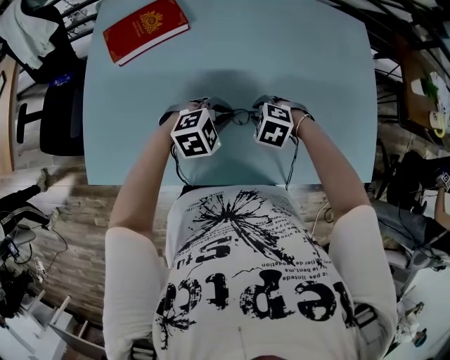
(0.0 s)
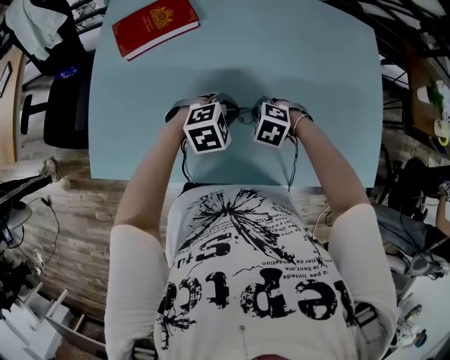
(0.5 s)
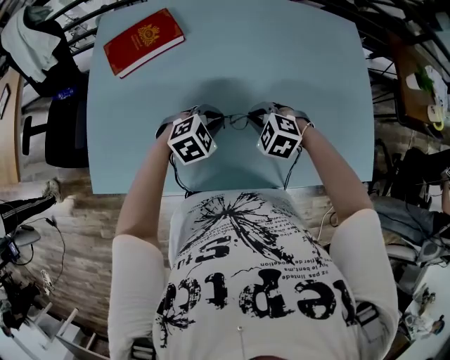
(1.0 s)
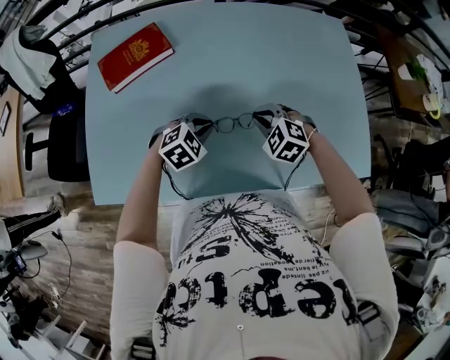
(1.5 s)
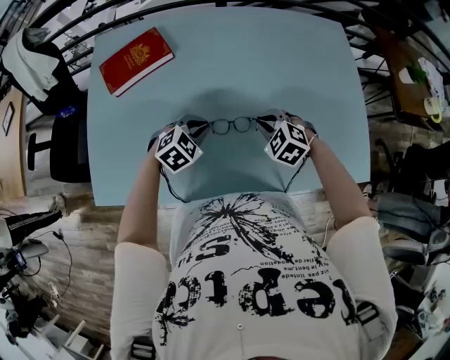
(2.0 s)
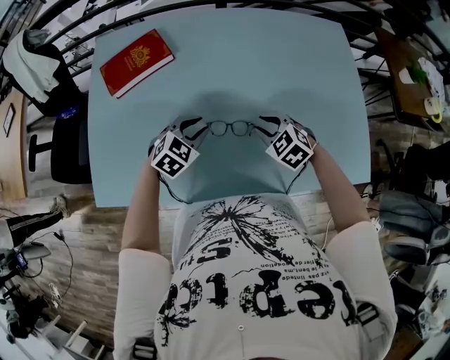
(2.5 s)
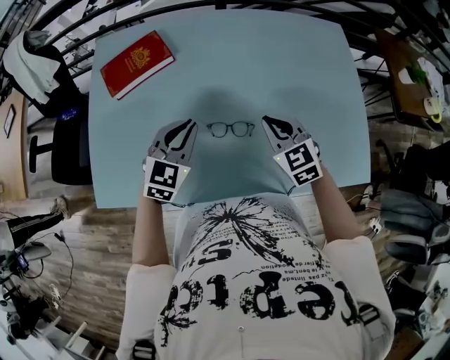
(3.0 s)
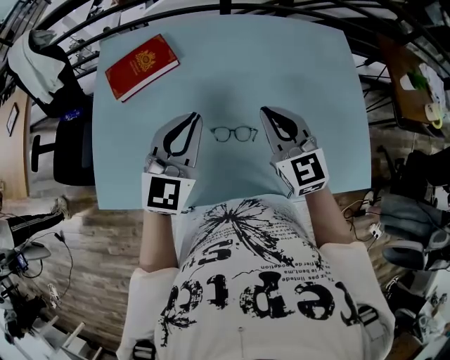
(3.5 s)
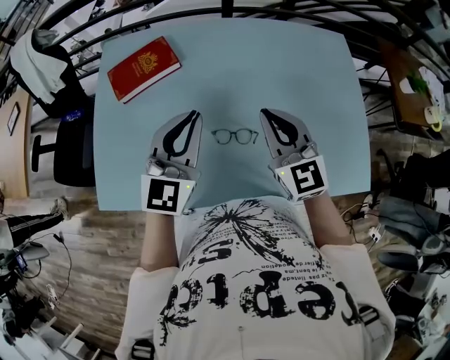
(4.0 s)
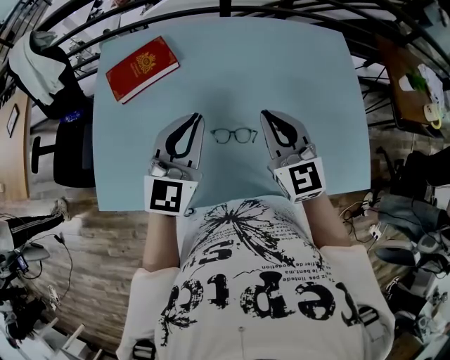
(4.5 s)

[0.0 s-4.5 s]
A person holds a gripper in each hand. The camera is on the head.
0.0 to 2.0 s: The right gripper shifts some 5 cm upward, rotates some 20 degrees, and closes.
2.0 to 4.5 s: Both grippers travel together upward, about 20 cm. The right gripper tilts its fingers approximately 50 degrees upward, and opens, then closes again. The left gripper tips its fingers upward by approximately 50 degrees, and opens, then closes once more.

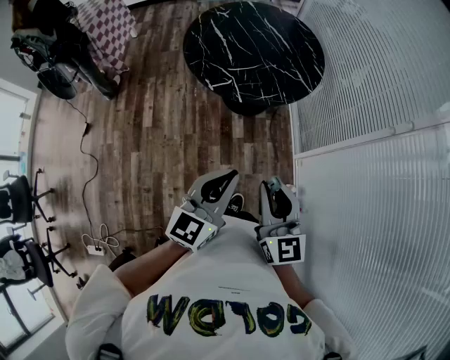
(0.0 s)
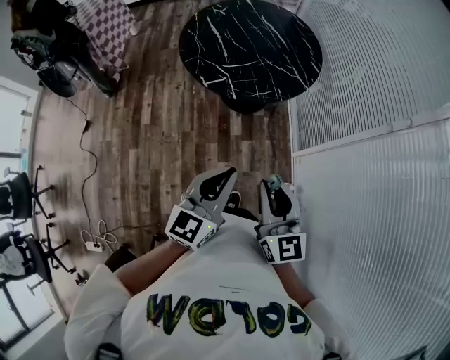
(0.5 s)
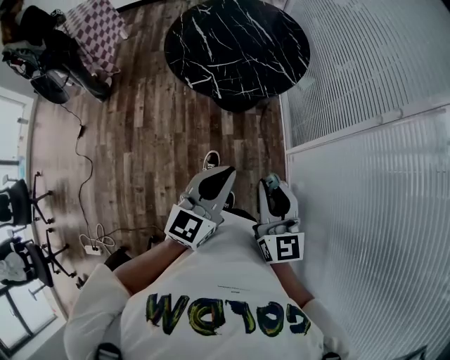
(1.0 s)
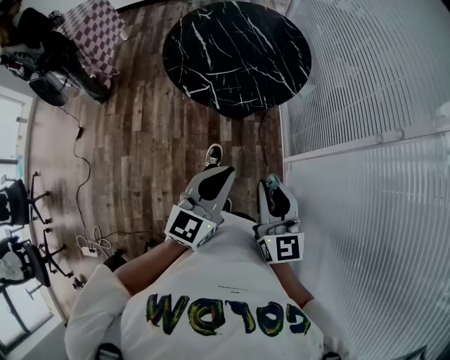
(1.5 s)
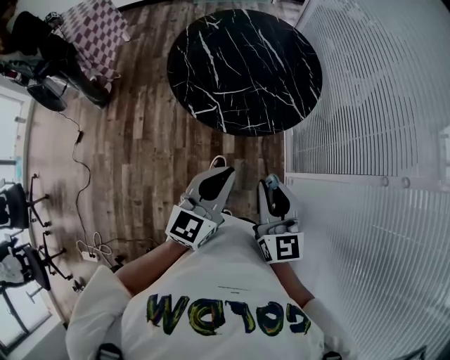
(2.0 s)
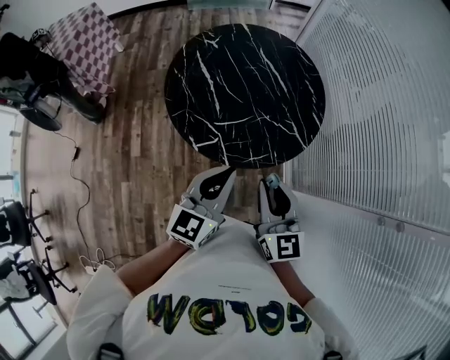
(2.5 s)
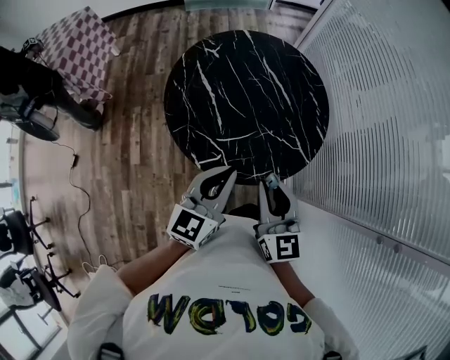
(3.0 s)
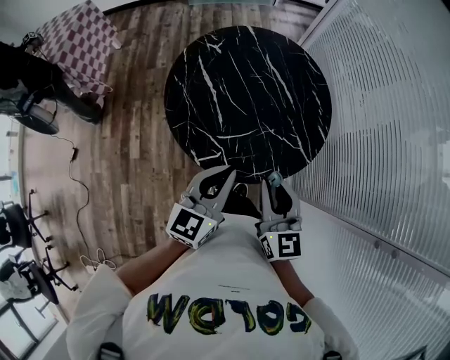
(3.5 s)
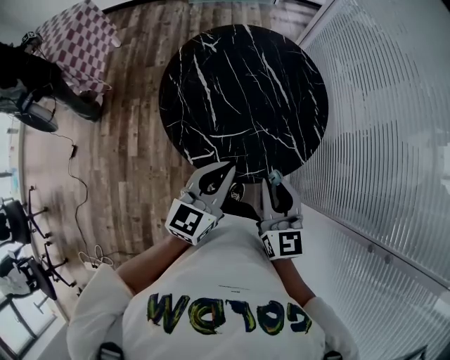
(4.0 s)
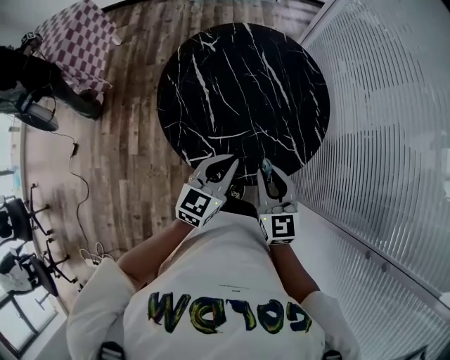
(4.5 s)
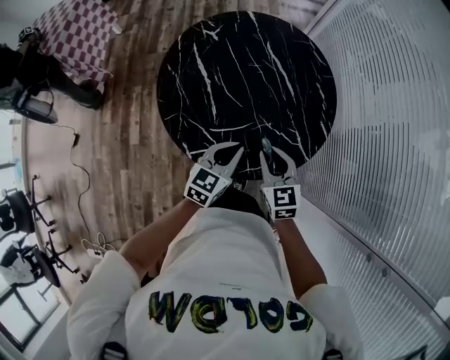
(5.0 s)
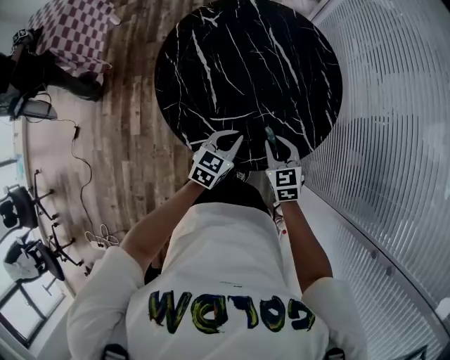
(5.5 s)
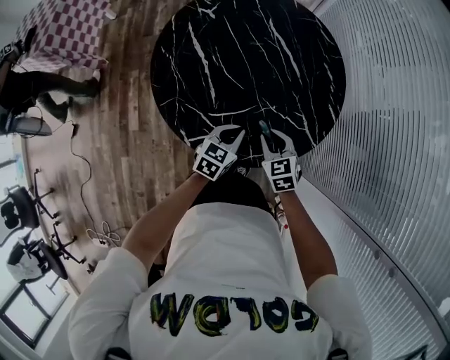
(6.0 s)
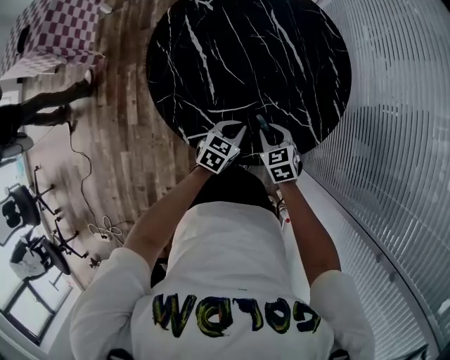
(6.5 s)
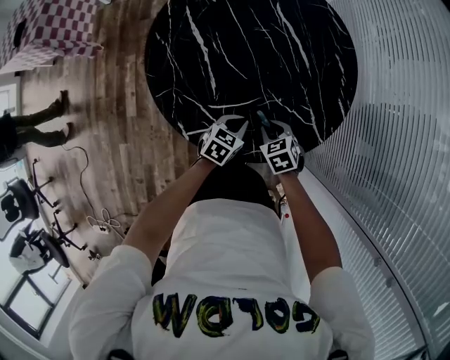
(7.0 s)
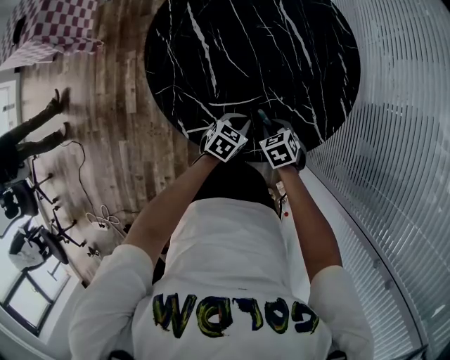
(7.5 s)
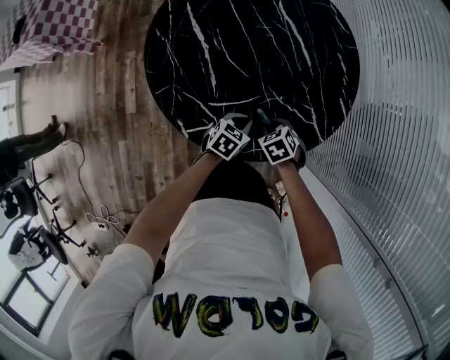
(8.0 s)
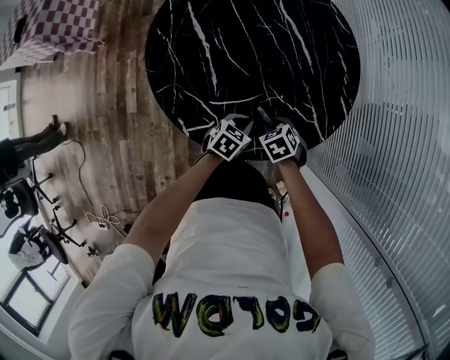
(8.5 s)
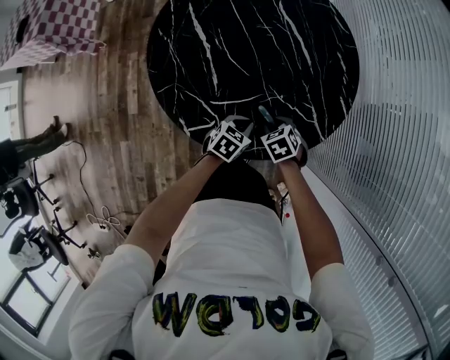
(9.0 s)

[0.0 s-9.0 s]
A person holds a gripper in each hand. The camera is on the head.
0.0 to 2.0 s: The grippers both shift forward by some 20 cm.
2.0 to 4.5 s: Both grippers travel together forward, about 30 cm.
4.5 to 7.0 s: The two grippers go approximately 30 cm downward. The right gripper points its fingers some 40 degrees further downward. Meanwhile the left gripper rotates approximately 30 degrees.
7.0 to 9.0 s: There are only small adjustments of the grippers.

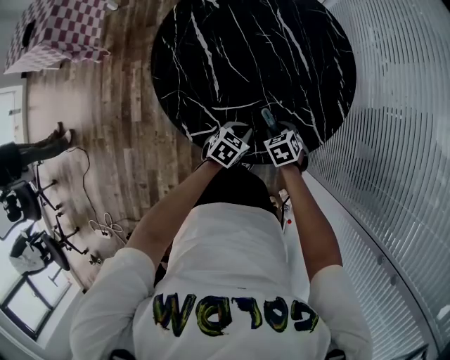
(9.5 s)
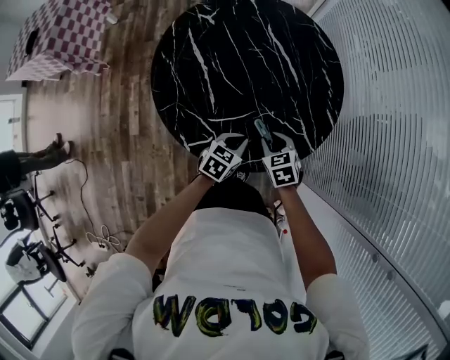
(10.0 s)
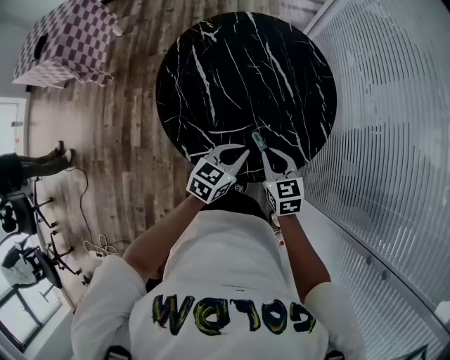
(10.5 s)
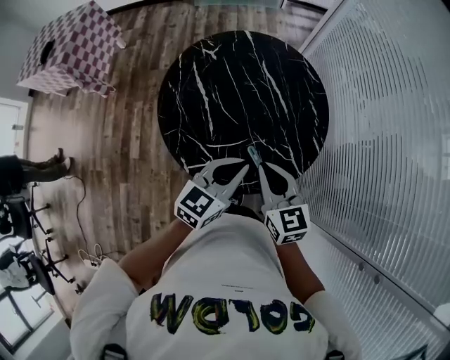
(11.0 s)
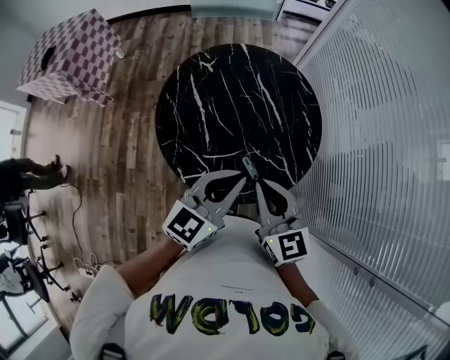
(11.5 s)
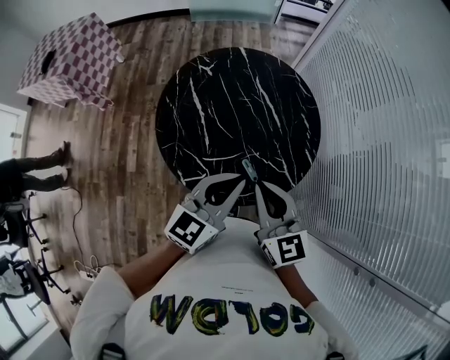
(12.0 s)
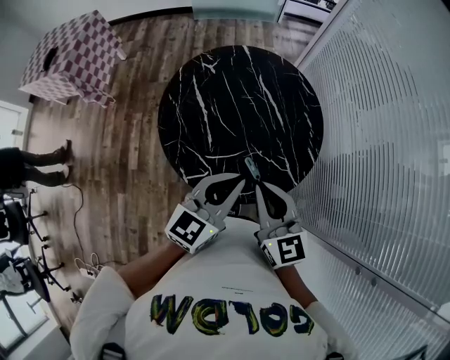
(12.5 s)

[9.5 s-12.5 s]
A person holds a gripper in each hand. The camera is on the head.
9.5 to 11.0 s: The grippers both shift upward by about 30 cm. The right gripper tips its fingers upward by about 50 degrees, and closes up; the left gripper angles its fingers upward, by approximately 30 degrees.
11.0 to 12.5 s: The grippers both shift upward by roughly 10 cm.

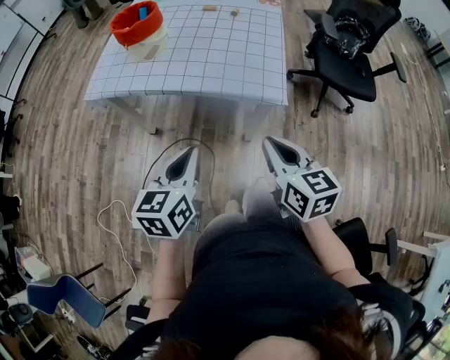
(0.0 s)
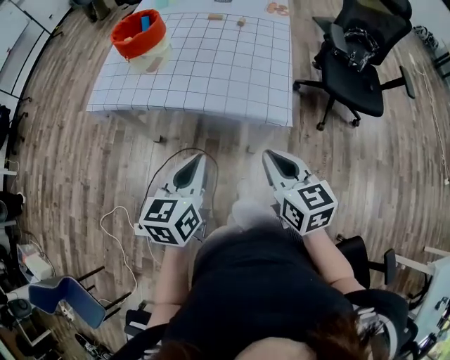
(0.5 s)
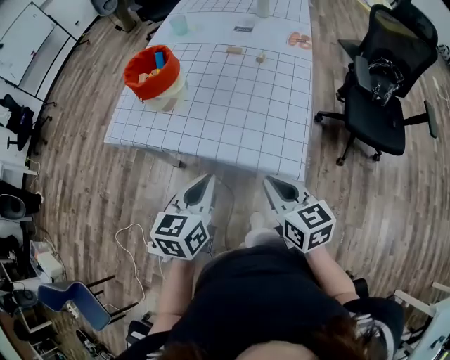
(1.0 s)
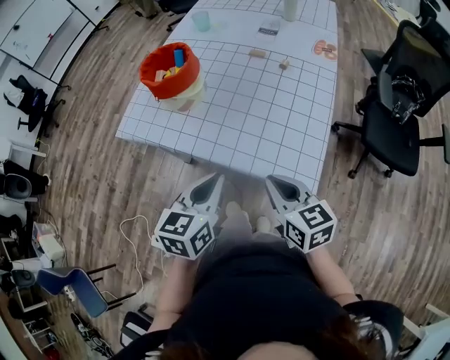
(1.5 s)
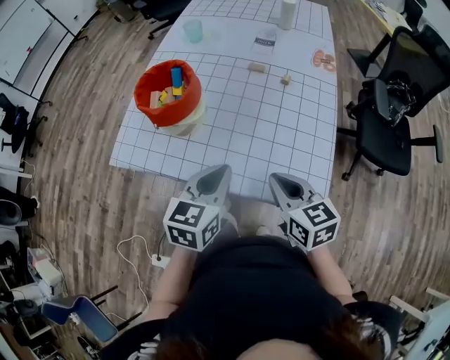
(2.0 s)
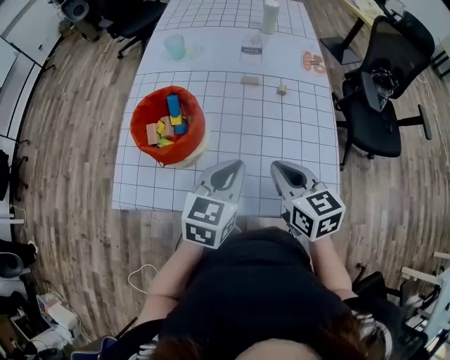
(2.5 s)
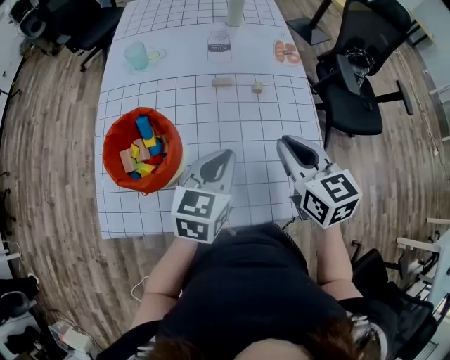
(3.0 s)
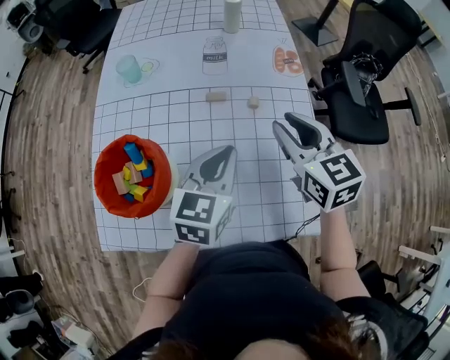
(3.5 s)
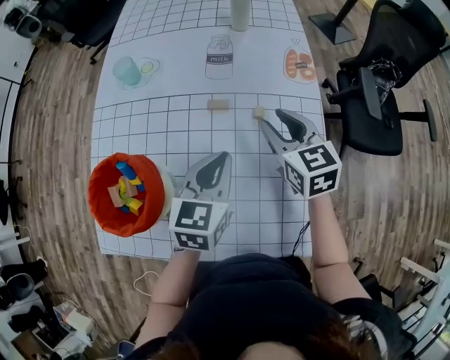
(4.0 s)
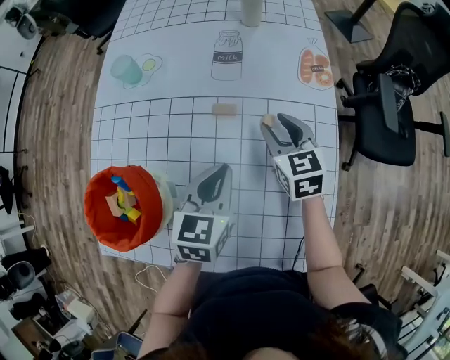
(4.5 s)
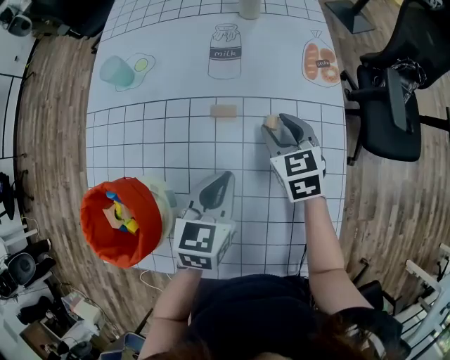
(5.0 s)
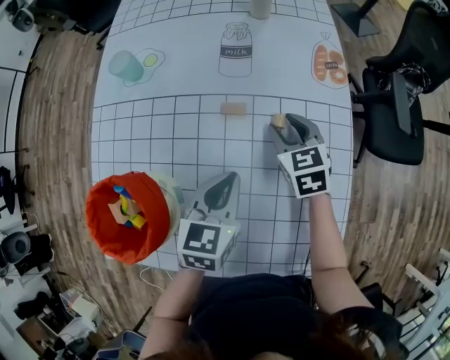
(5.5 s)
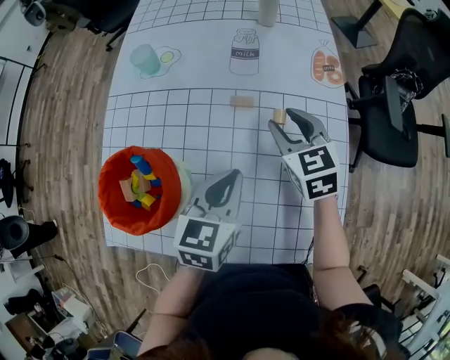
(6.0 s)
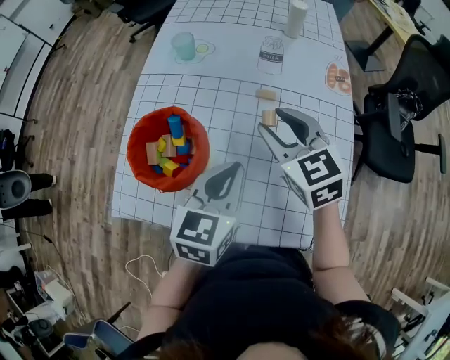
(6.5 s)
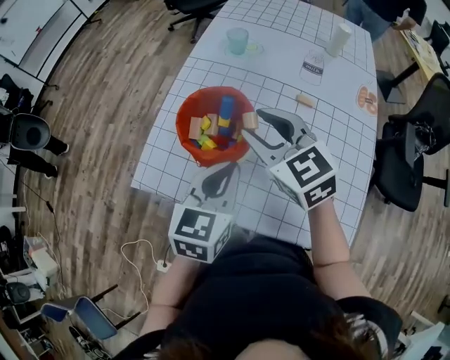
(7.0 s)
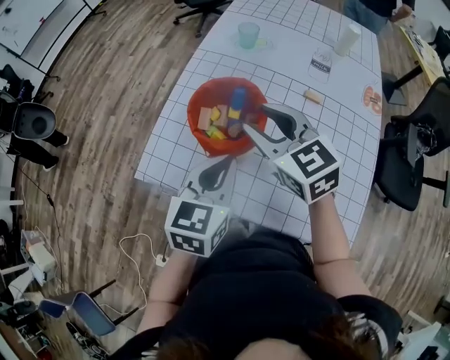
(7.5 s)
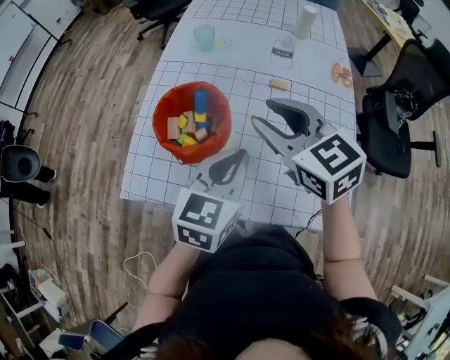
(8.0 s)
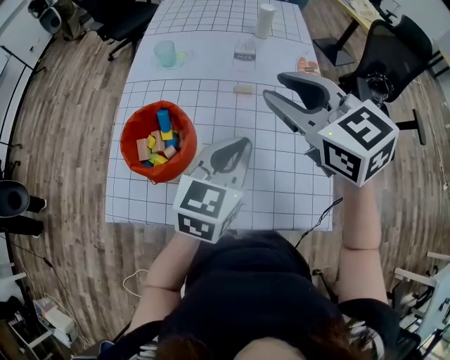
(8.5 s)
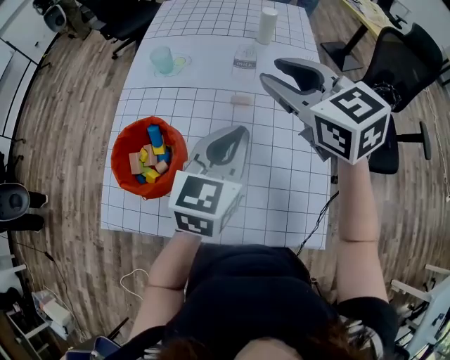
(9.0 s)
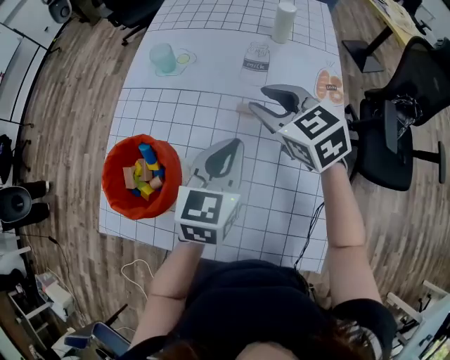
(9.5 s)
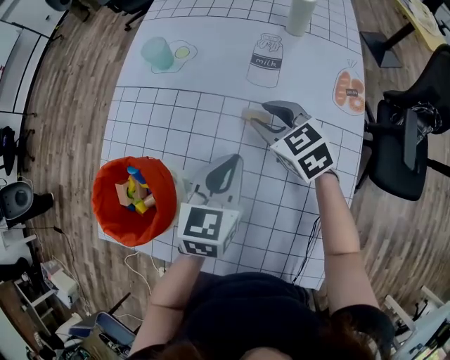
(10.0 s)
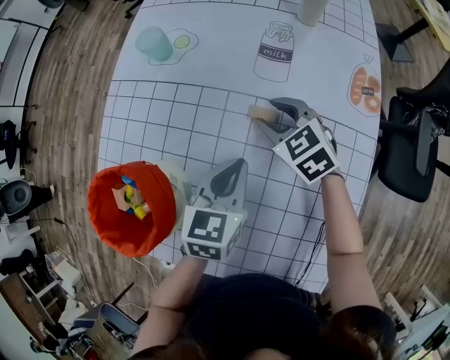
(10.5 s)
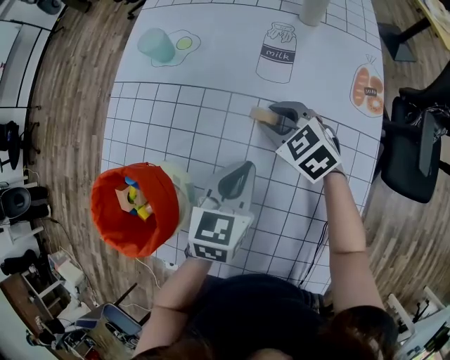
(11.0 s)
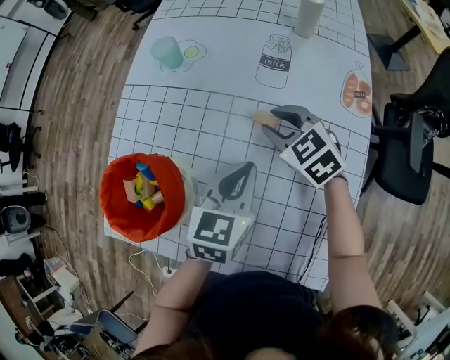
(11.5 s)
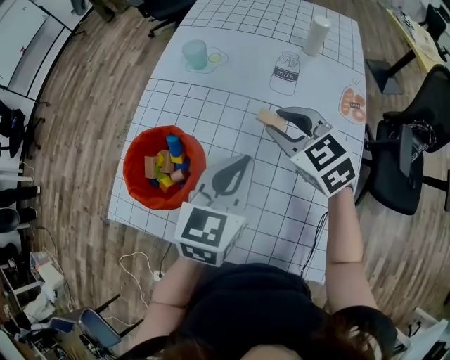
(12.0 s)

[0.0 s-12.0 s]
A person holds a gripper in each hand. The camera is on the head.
0.0 to 2.0 s: The two grippers go some 30 cm forward.
2.0 to 4.0 s: The grippers both shift forward by roughly 30 cm. The right gripper opens up.
4.0 to 6.0 s: The right gripper reaches about 10 cm downward, then returns.
6.0 to 8.0 s: The left gripper changes place by about 15 cm. Meanwhile the right gripper shifts by approximately 30 cm, and rotates about 20 degrees.
8.0 to 10.0 s: The right gripper is displaced forward, downward and to the right by about 30 cm; the left gripper goes roughly 25 cm forward, to the right and downward.
10.0 to 12.0 s: The grippers both shift upward and backward by roughly 10 cm.
